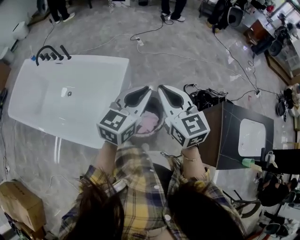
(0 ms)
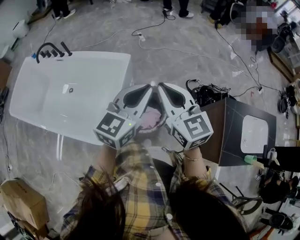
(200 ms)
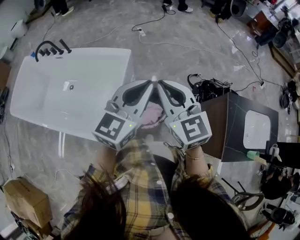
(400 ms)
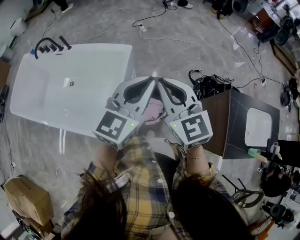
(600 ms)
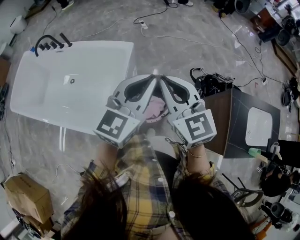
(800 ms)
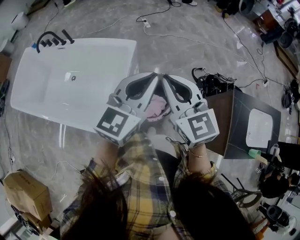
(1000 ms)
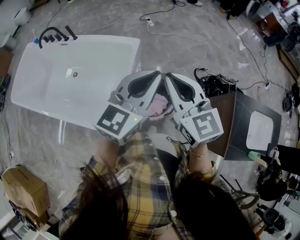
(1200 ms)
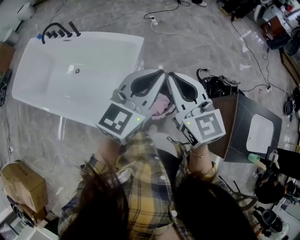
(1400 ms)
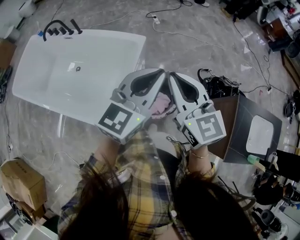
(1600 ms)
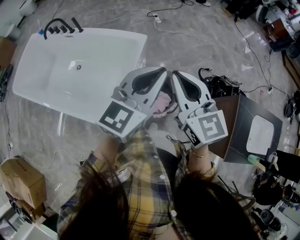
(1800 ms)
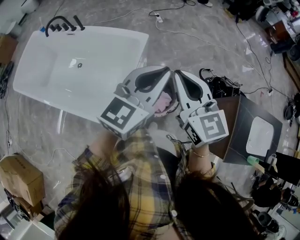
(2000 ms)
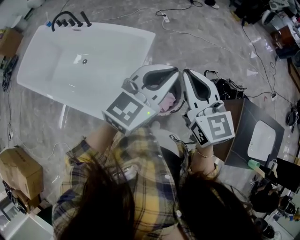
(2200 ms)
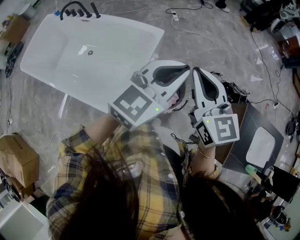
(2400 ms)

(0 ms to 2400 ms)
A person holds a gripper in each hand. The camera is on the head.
0 ms - 1200 ms: The left gripper ends up roughly 5 cm from where it was.
1200 ms - 2400 ms: There are only small adjustments of the grippers.

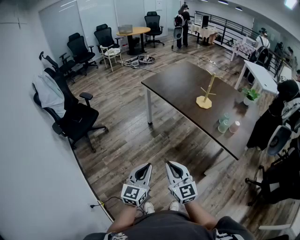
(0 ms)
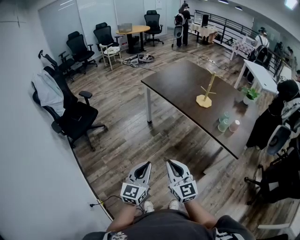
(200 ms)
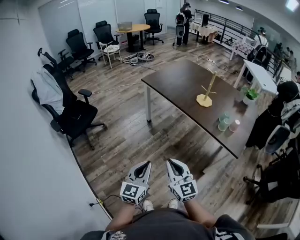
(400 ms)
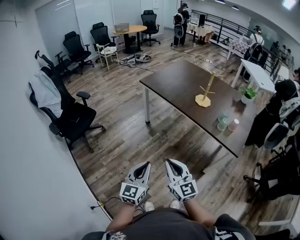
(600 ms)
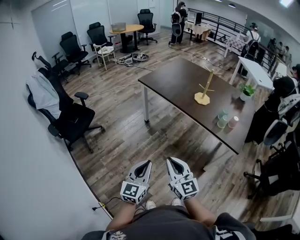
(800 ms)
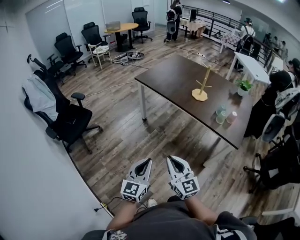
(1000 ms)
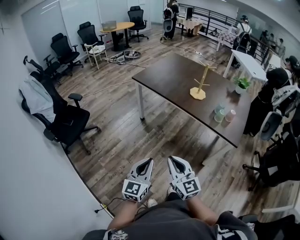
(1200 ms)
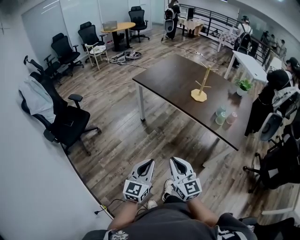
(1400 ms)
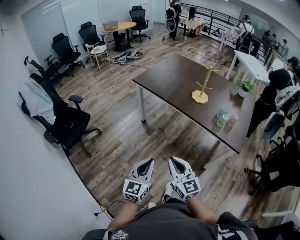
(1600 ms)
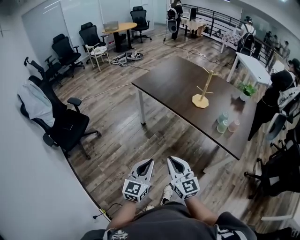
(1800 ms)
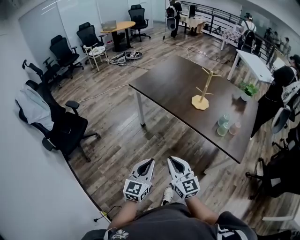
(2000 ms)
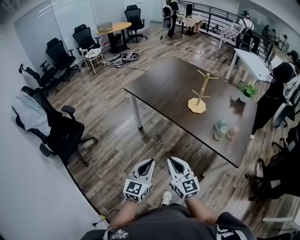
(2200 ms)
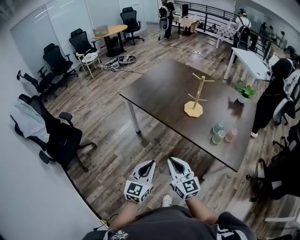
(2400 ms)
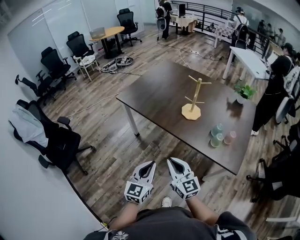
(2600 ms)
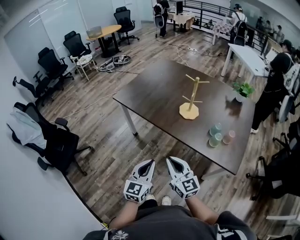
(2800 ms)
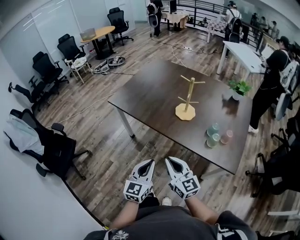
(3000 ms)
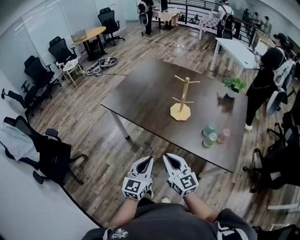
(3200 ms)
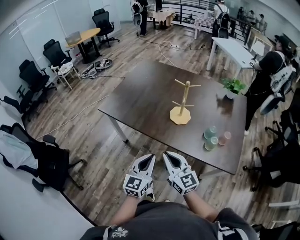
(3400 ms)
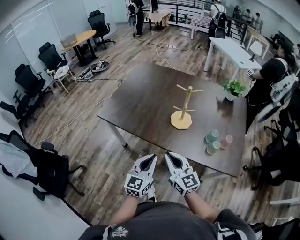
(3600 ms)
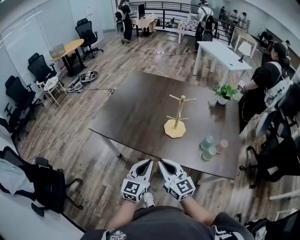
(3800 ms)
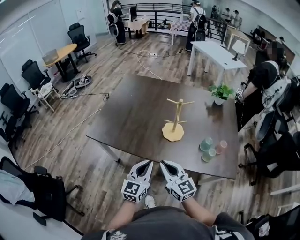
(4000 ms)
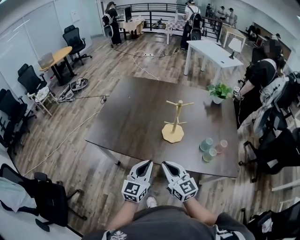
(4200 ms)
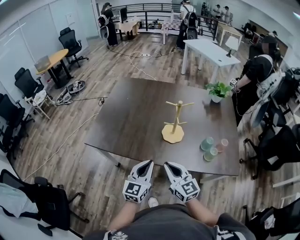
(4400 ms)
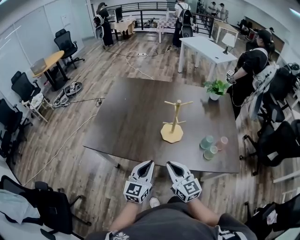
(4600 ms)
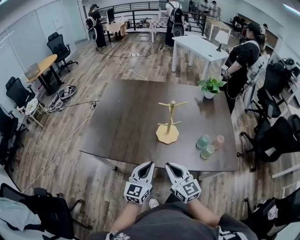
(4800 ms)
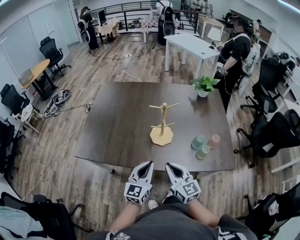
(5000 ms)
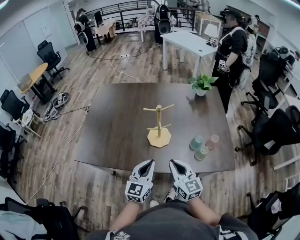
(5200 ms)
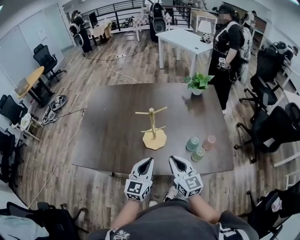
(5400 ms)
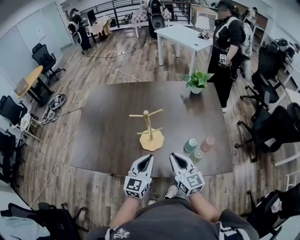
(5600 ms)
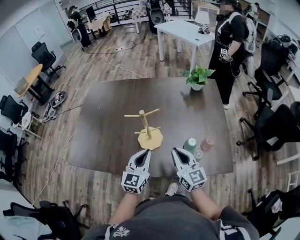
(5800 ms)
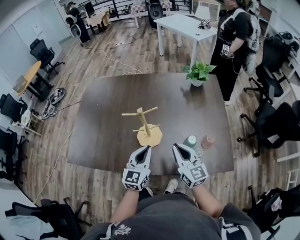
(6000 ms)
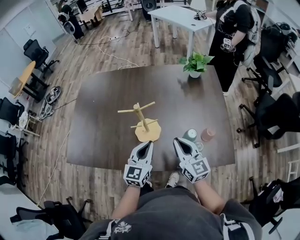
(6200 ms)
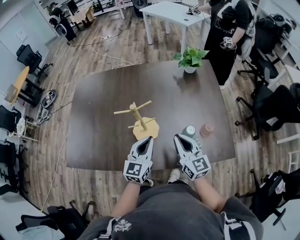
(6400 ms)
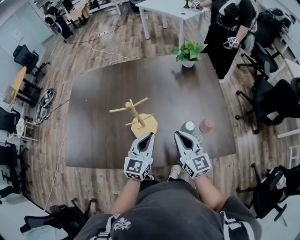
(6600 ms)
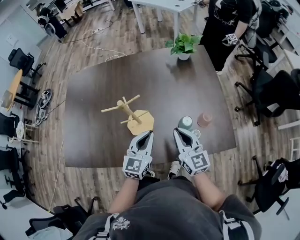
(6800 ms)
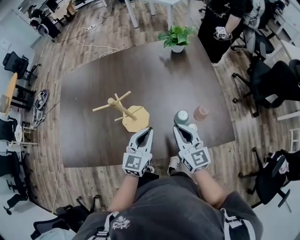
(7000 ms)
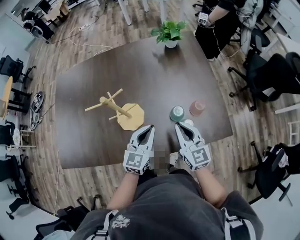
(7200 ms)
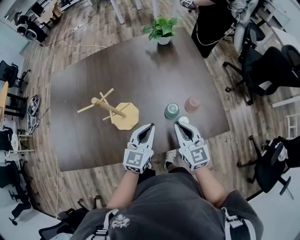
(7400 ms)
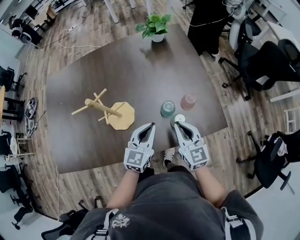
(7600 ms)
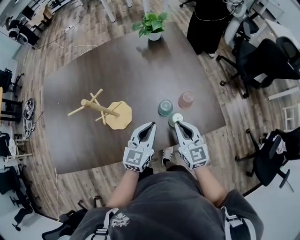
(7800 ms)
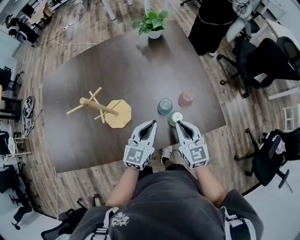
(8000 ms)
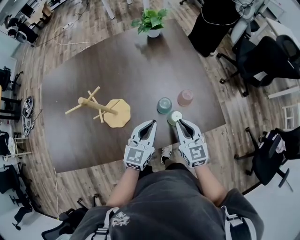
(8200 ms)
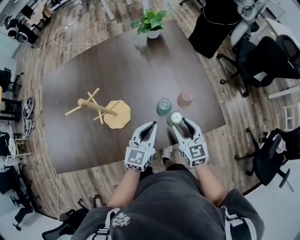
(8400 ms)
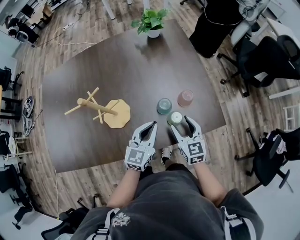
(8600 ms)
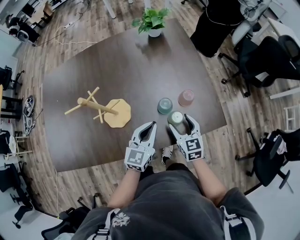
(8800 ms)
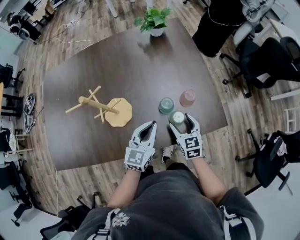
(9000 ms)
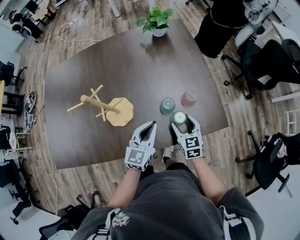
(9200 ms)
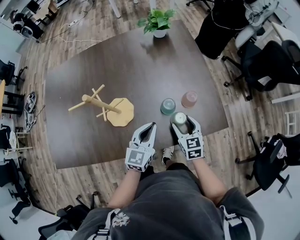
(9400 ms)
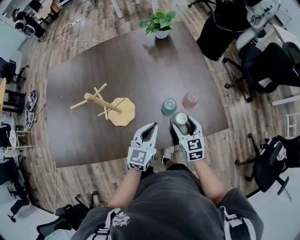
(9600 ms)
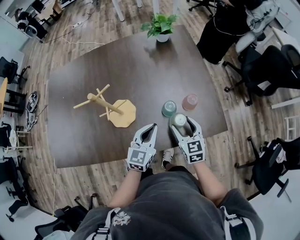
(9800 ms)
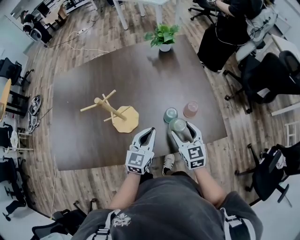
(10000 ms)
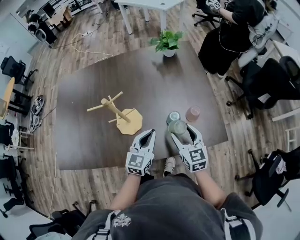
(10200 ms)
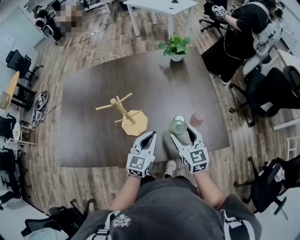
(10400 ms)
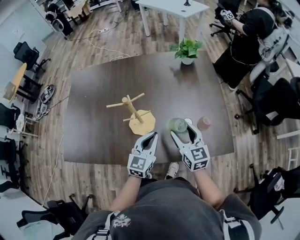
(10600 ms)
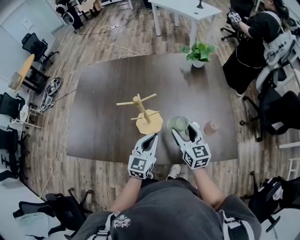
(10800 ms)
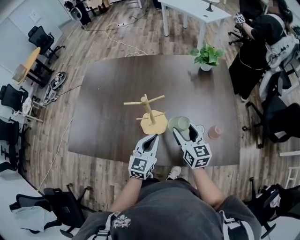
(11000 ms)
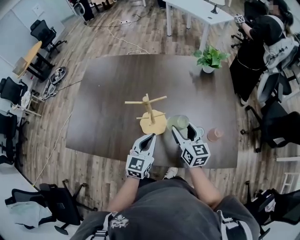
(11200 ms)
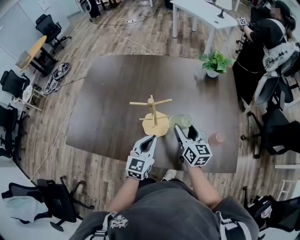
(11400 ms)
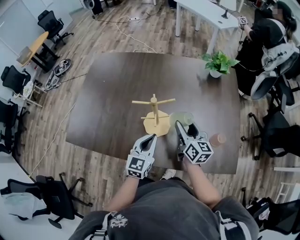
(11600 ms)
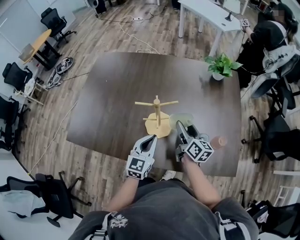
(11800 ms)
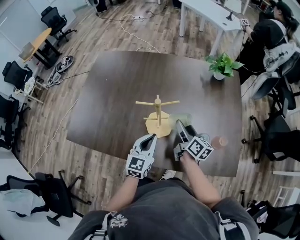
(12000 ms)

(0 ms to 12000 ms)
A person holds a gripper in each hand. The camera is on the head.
0 ms - 1600 ms: Both grippers move forward, approximately 5 cm.
1600 ms - 3000 ms: Both grippers move forward and to the right, about 30 cm.
3000 ms - 4400 ms: The grippers both shift forward by roughly 20 cm. The left gripper swivels about 20 degrees.
4400 ms - 6000 ms: The right gripper shifts approximately 25 cm to the right and forward. Meanwhile the left gripper heads forward and to the right, covering approximately 20 cm.
6000 ms - 7600 ms: The grippers both shift to the right and downward by approximately 15 cm. The right gripper turns by roughly 20 degrees; the left gripper turns by roughly 20 degrees.
7600 ms - 9000 ms: The right gripper heads downward, covering about 10 cm, and opens its fingers.
9000 ms - 10400 ms: The right gripper shifts roughly 15 cm upward and to the left; the left gripper heads to the left, covering about 5 cm.
10400 ms - 12000 ms: The left gripper travels to the left by approximately 15 cm; the right gripper is displaced forward and to the left by about 20 cm, and rotates around the line of its fingers by some 40 degrees, clockwise from behind.

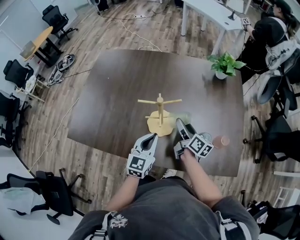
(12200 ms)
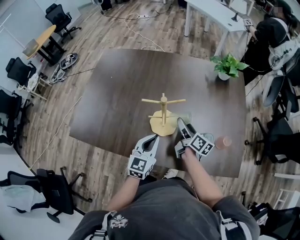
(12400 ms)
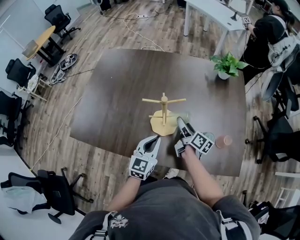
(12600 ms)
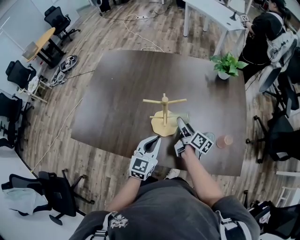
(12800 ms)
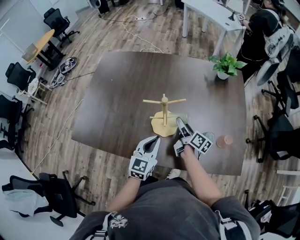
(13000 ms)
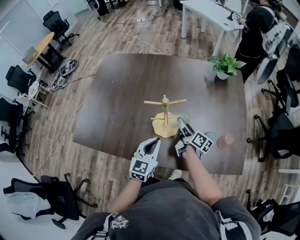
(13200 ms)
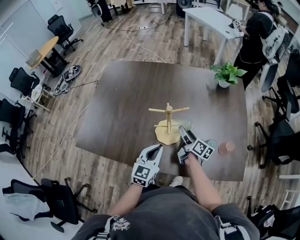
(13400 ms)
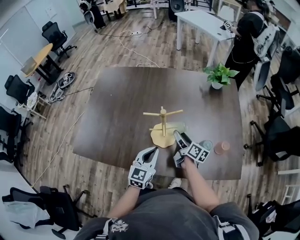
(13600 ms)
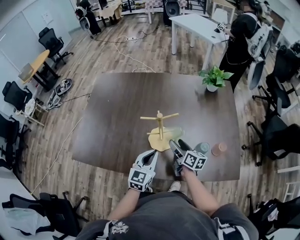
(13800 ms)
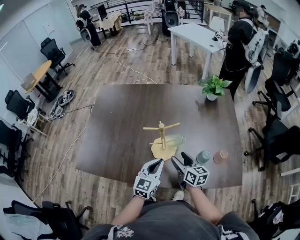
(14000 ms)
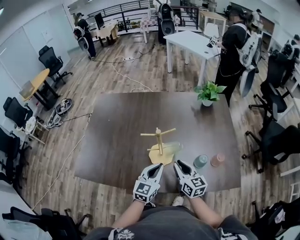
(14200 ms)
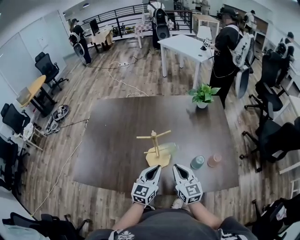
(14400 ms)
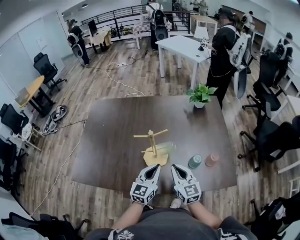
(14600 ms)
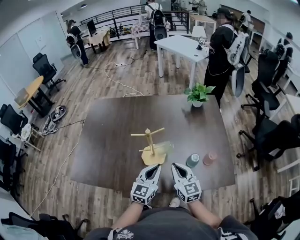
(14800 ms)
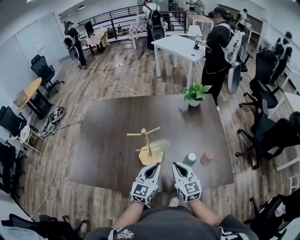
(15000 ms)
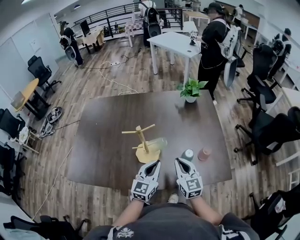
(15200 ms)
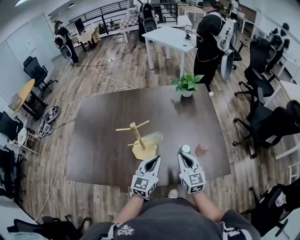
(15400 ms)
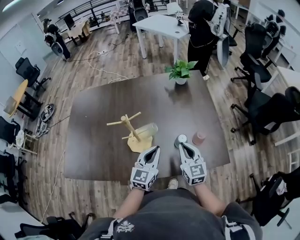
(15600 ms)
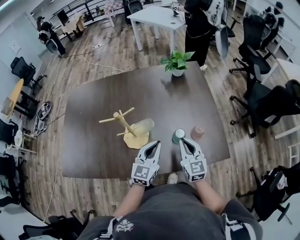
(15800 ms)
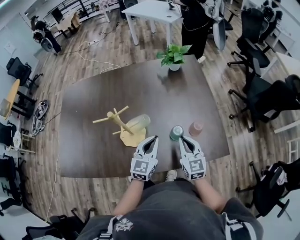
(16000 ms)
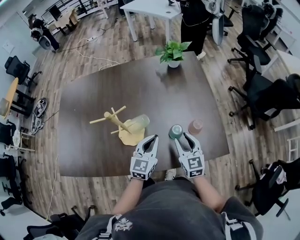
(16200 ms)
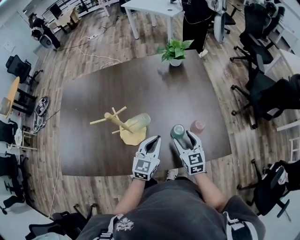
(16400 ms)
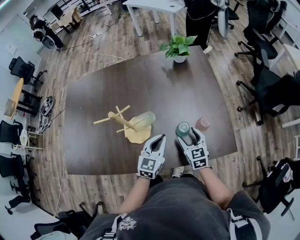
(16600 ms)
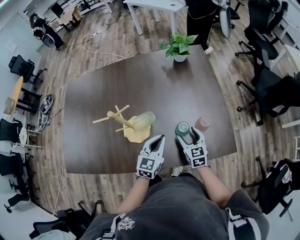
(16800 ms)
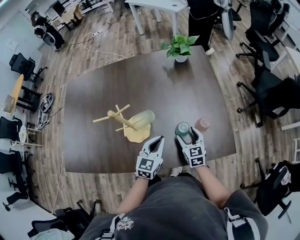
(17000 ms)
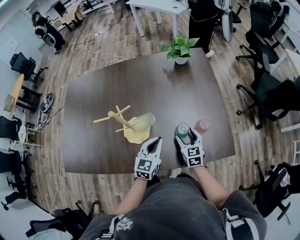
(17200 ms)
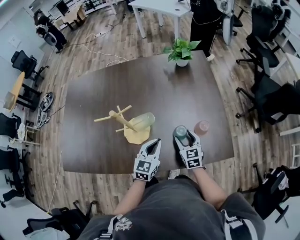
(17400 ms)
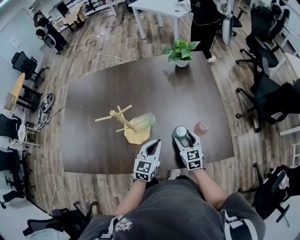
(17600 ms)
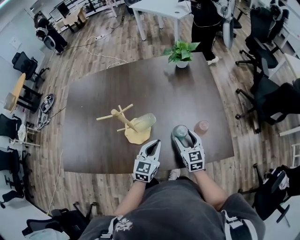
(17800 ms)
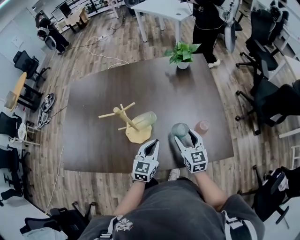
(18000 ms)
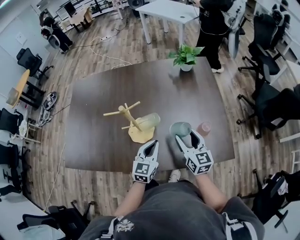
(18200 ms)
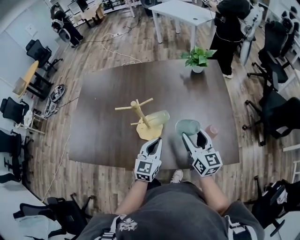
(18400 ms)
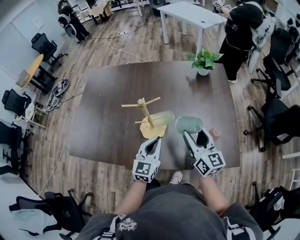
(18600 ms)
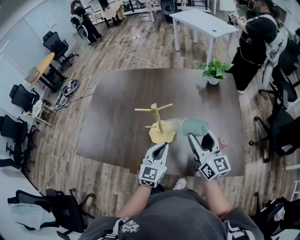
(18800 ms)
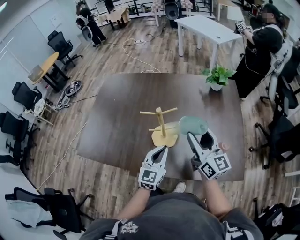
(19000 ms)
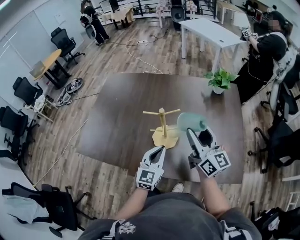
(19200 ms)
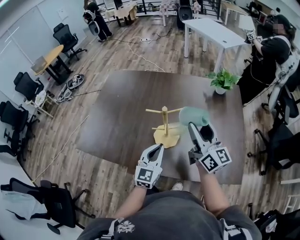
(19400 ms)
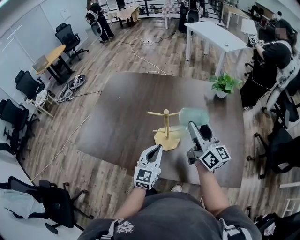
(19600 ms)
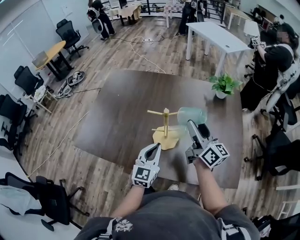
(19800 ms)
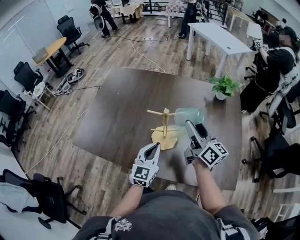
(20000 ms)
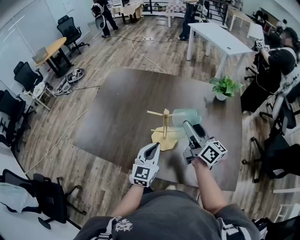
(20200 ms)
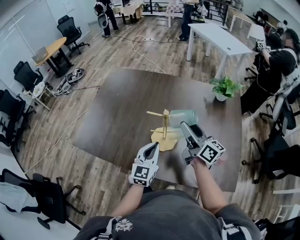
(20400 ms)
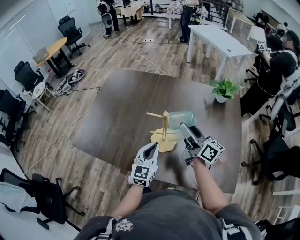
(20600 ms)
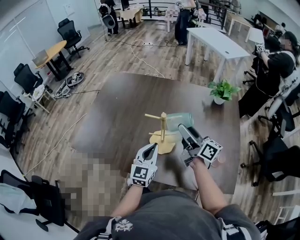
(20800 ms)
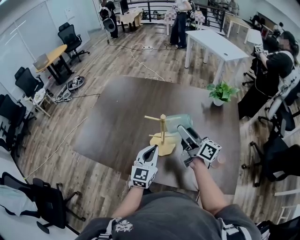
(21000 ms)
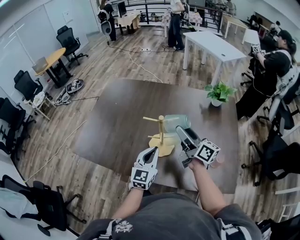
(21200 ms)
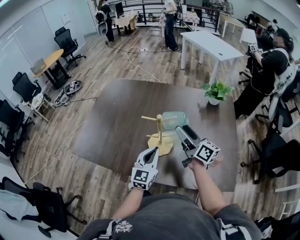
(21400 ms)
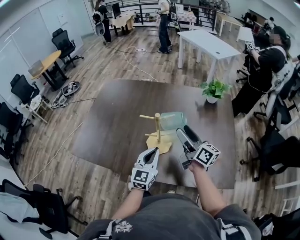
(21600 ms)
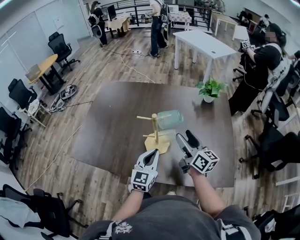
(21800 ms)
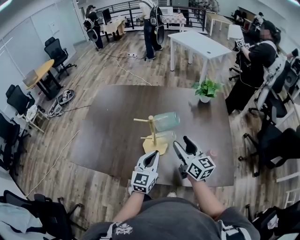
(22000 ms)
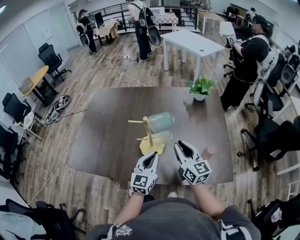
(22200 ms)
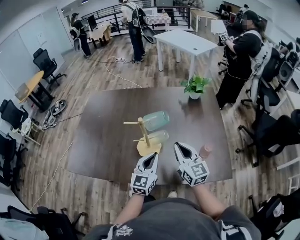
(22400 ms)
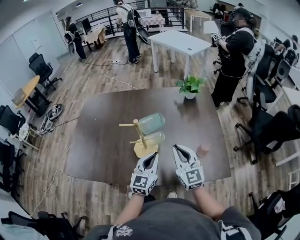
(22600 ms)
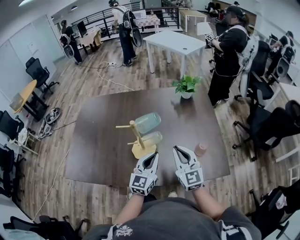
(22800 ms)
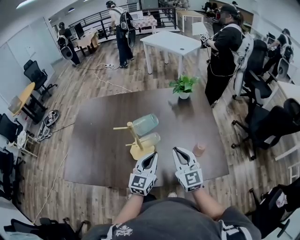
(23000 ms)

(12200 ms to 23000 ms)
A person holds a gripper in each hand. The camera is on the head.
12200 ms - 13800 ms: There are only small adjustments of the grippers.
13800 ms - 15200 ms: The right gripper goes about 15 cm upward, backward and to the right, rotates around the line of its fingers by approximately 40 degrees, counterclockwise from behind, and closes its fingers, while the left gripper moves to the right, roughly 10 cm.
15200 ms - 16800 ms: The left gripper goes about 15 cm downward, to the right and forward; the right gripper shifts some 20 cm downward and to the right, changes its angle by roughly 20 degrees, and opens its fingers.
16800 ms - 18400 ms: The right gripper heads upward, covering about 15 cm, and swivels about 30 degrees. Meanwhile the left gripper goes some 5 cm to the left.
18400 ms - 20000 ms: The left gripper heads to the left and upward, covering about 10 cm. The right gripper is displaced to the left, upward and forward by some 20 cm, and changes its angle by about 30 degrees.
21400 ms - 23000 ms: The left gripper travels to the right by approximately 10 cm. The right gripper shifts approximately 15 cm backward and to the right, twists approximately 50 degrees counterclockwise, seen from behind, and closes.
